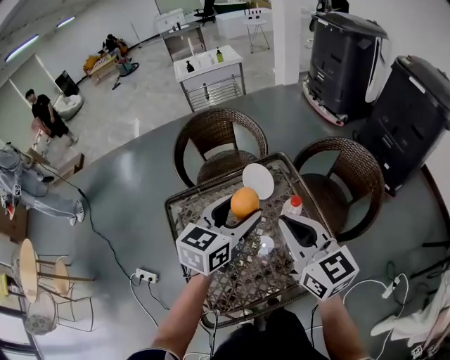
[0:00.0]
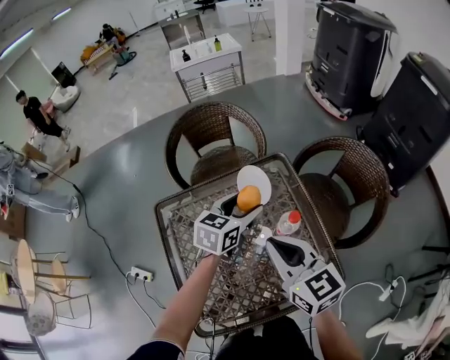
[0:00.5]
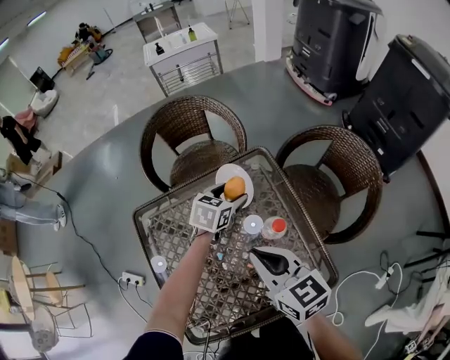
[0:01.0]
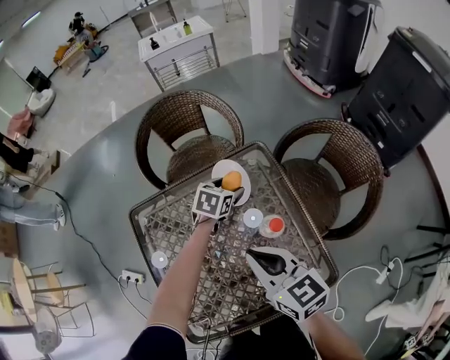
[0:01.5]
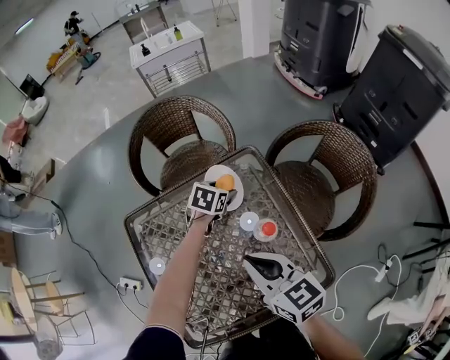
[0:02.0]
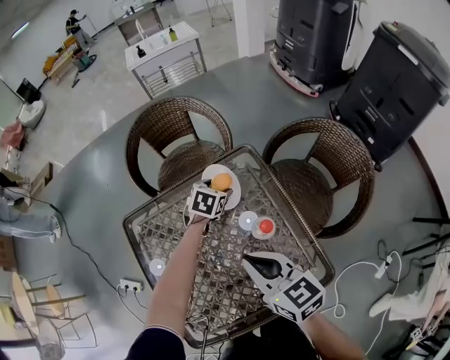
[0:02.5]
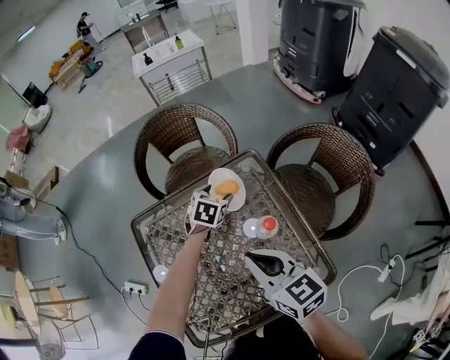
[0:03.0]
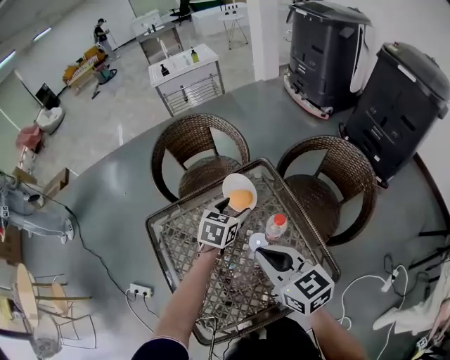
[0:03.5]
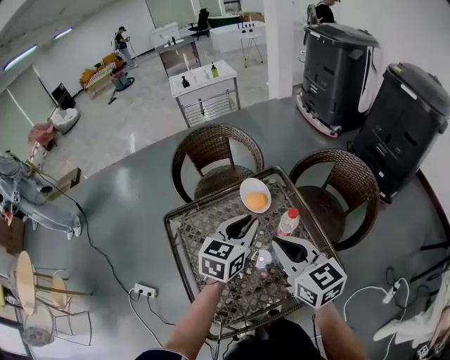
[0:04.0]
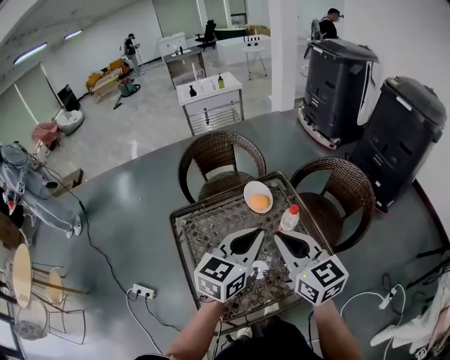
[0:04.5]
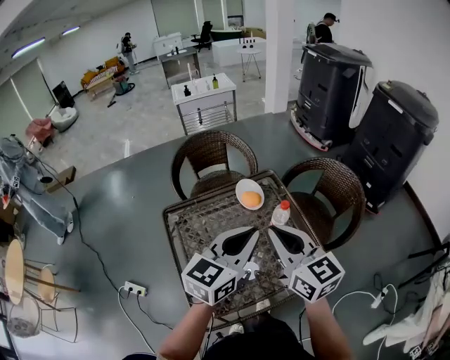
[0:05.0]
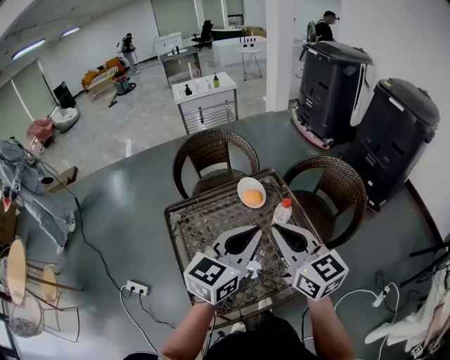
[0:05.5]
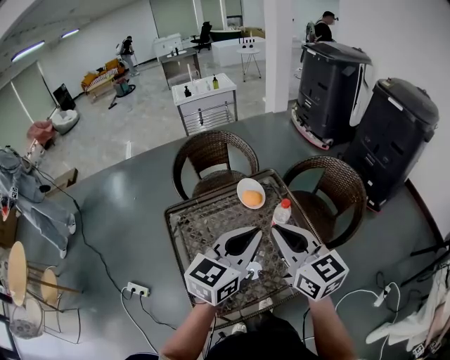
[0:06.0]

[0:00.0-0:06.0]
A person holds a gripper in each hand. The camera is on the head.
0:00.0 to 0:02.0: The left gripper heads downward and forward, covering about 35 cm, and tips its fingers downward by some 40 degrees; the right gripper goes about 15 cm downward, and turns by about 20 degrees.
0:02.0 to 0:04.0: The left gripper heads upward and backward, covering some 30 cm, points its fingers some 30 degrees further upward, and closes its fingers. The right gripper moves upward, about 10 cm.
0:04.0 to 0:06.0: The left gripper heads backward and upward, covering approximately 15 cm, while the right gripper travels upward by roughly 5 cm.

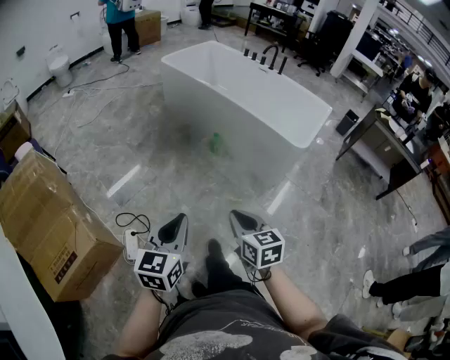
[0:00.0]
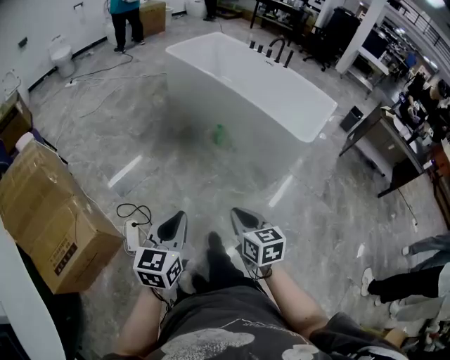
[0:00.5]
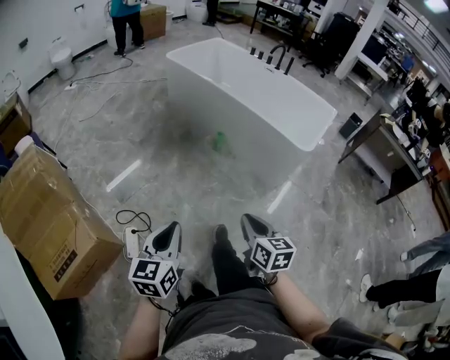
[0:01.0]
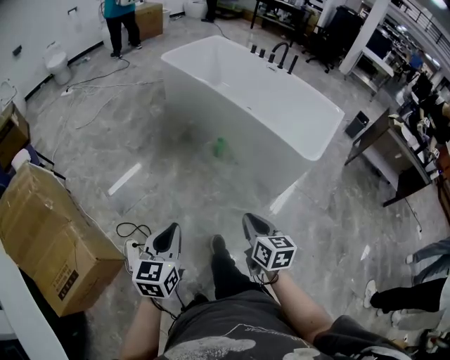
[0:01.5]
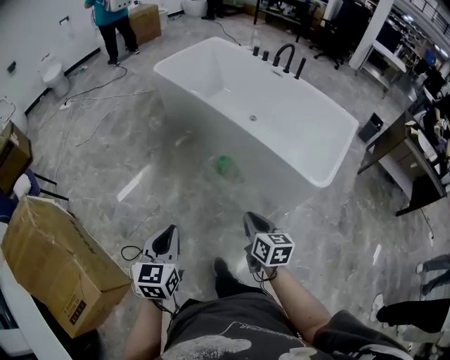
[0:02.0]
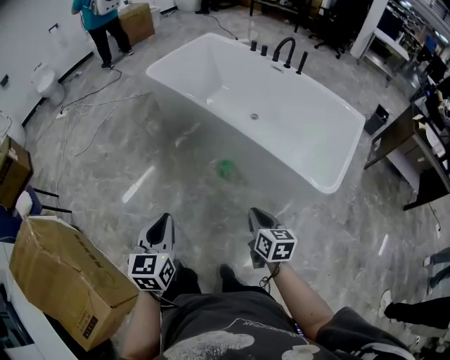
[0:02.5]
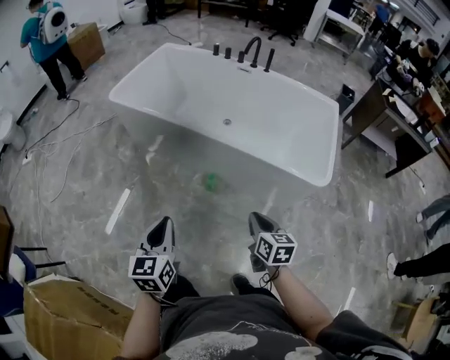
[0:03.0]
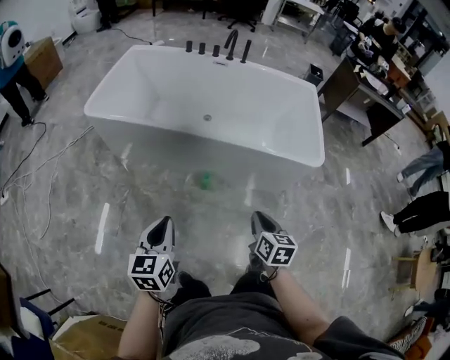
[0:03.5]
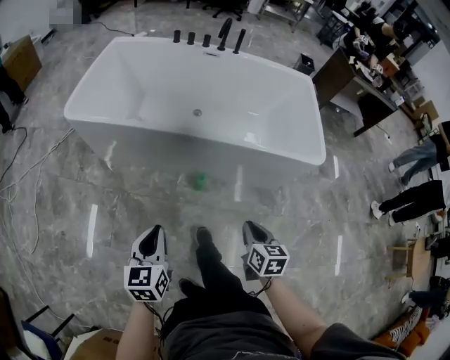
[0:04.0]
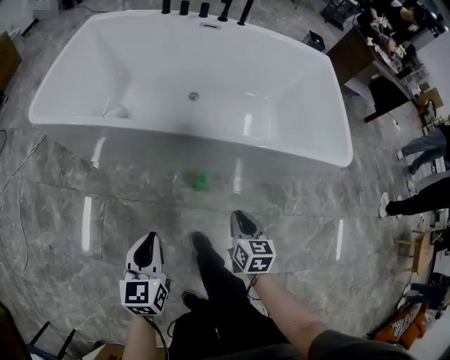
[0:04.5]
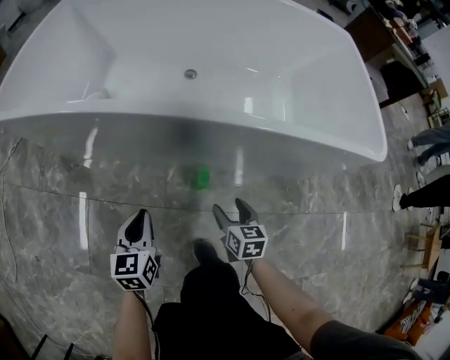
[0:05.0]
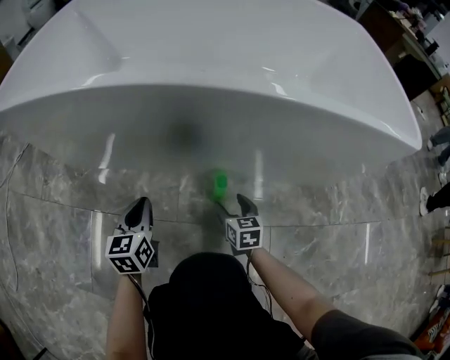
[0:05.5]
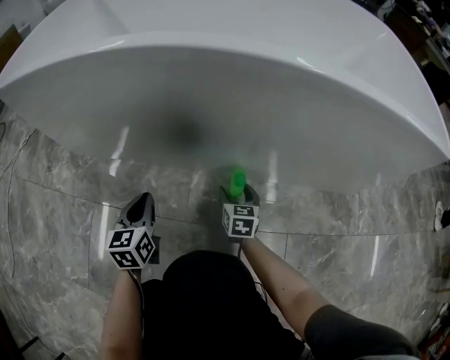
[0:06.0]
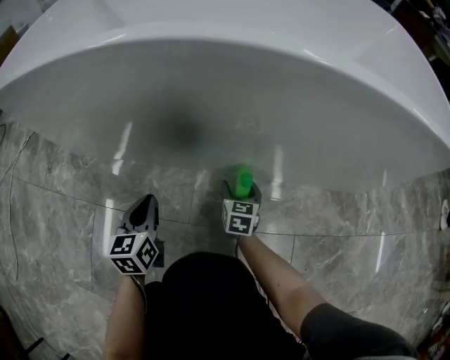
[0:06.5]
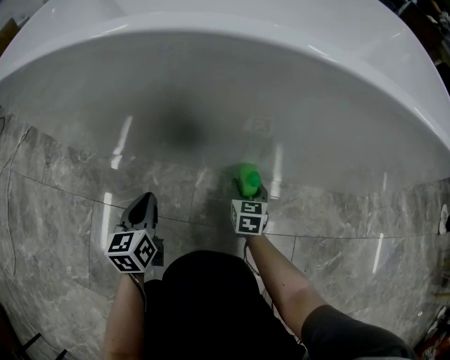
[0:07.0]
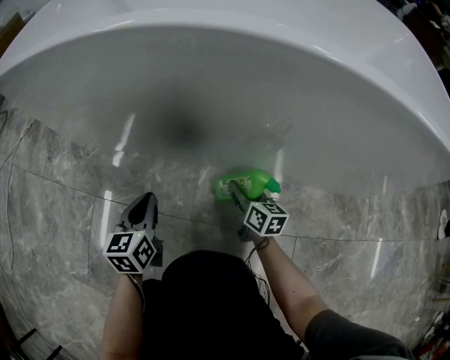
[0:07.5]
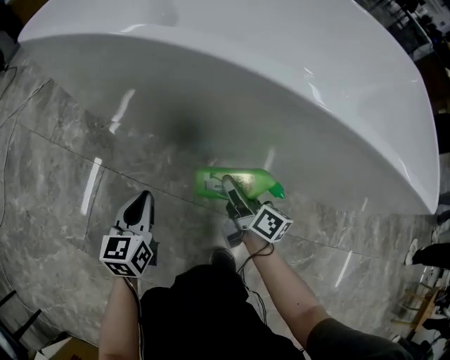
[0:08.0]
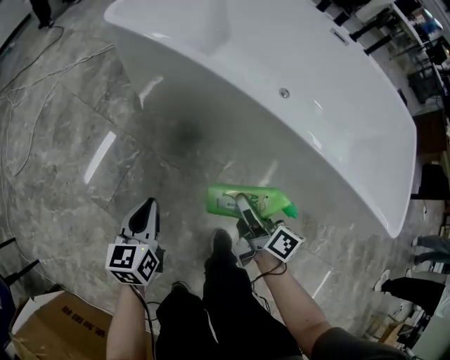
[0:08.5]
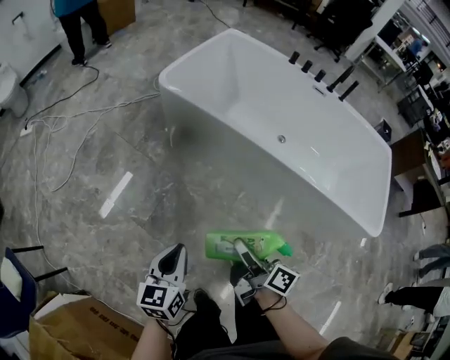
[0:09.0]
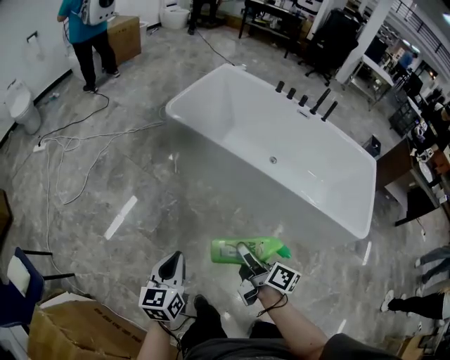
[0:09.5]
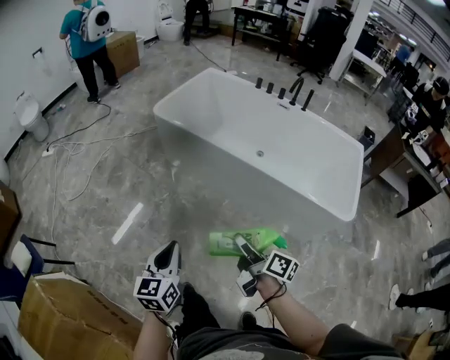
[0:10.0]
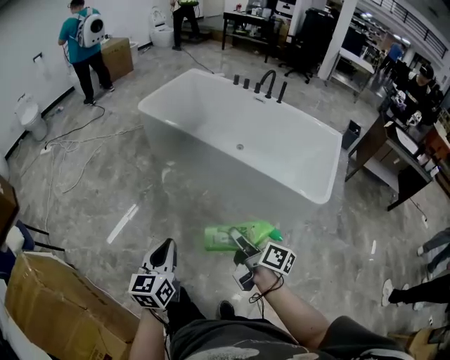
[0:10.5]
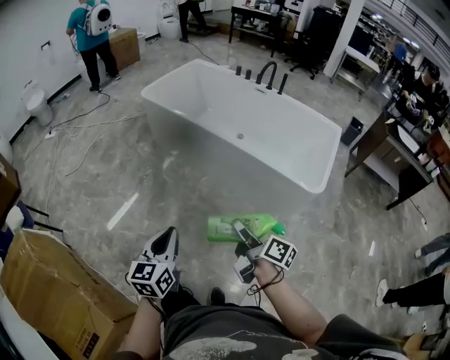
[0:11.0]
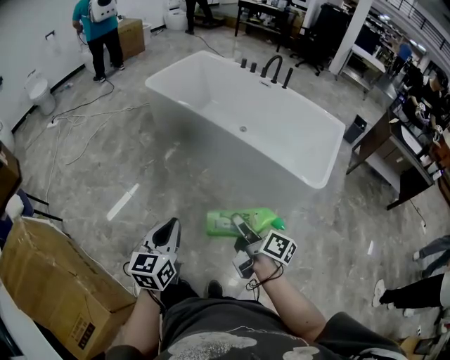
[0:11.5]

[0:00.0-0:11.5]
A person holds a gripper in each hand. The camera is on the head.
0:00.0 to 0:02.0: Both grippers travel together forward, some 30 cm.
0:02.0 to 0:04.0: The left gripper shifts by approximately 40 cm, and rotates roughly 30 degrees, while the right gripper ends up about 25 cm from where it was, and swivels about 40 degrees.
0:04.0 to 0:06.0: Both grippers travel together downward and forward, about 70 cm. The right gripper opens up.
0:06.0 to 0:07.5: The right gripper swivels about 30 degrees, and closes up.
0:07.5 to 0:09.5: The right gripper heads upward, covering roughly 70 cm, and turns by roughly 30 degrees, while the left gripper goes roughly 70 cm upward and backward, and turns by about 20 degrees.
0:09.5 to 0:11.5: Both grippers are carried backward and to the right, approximately 40 cm.

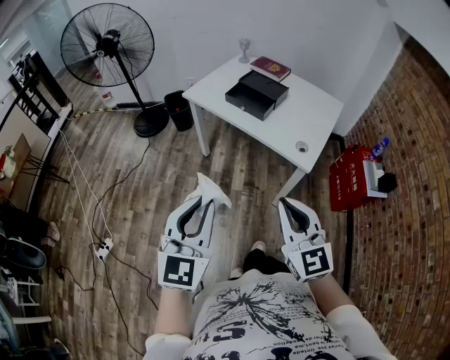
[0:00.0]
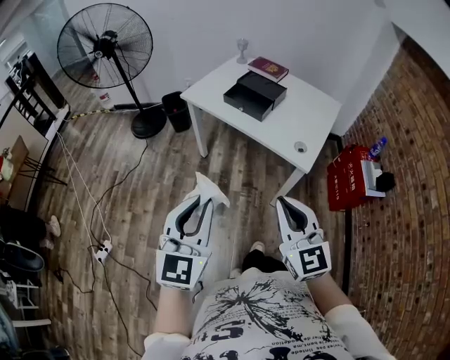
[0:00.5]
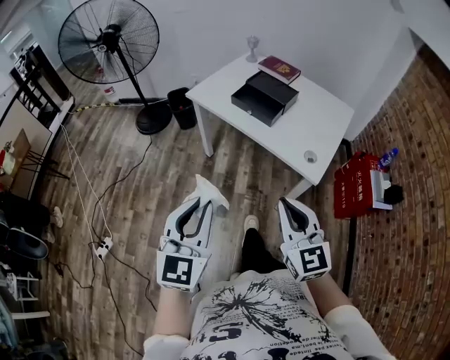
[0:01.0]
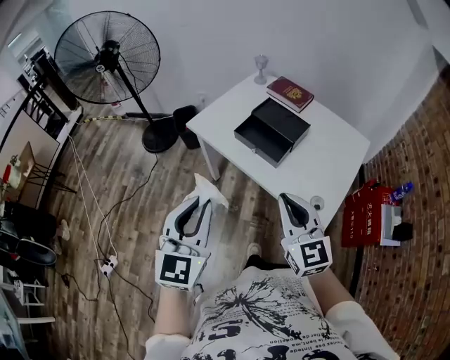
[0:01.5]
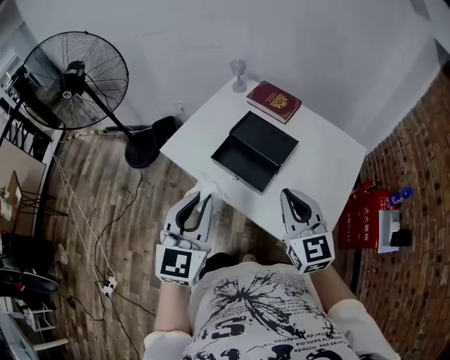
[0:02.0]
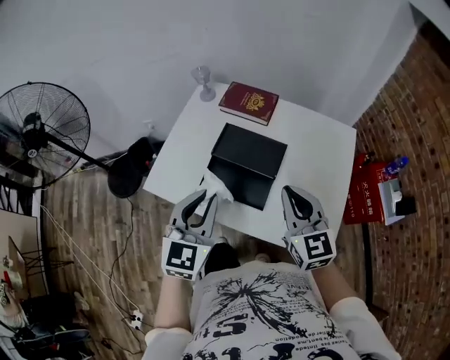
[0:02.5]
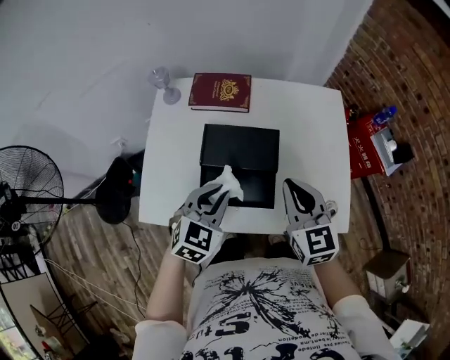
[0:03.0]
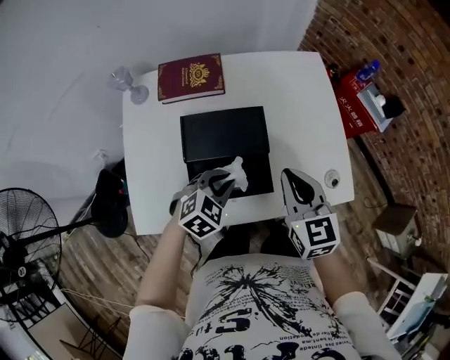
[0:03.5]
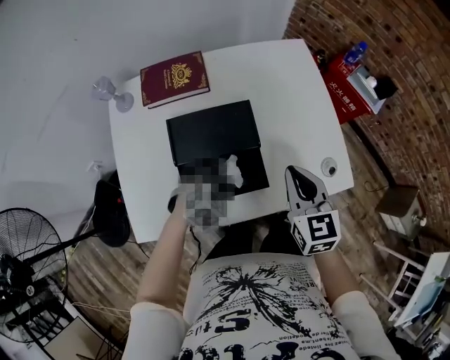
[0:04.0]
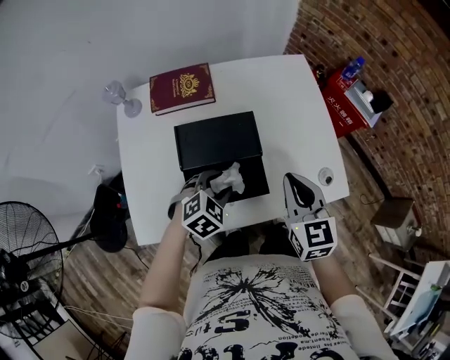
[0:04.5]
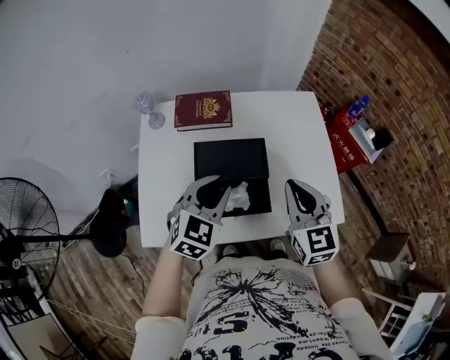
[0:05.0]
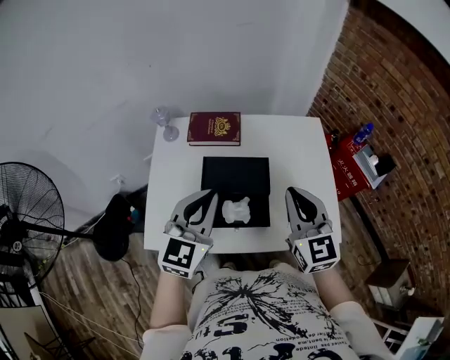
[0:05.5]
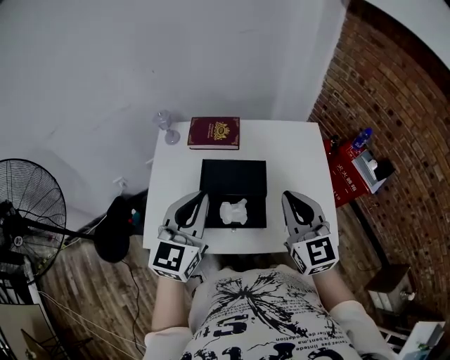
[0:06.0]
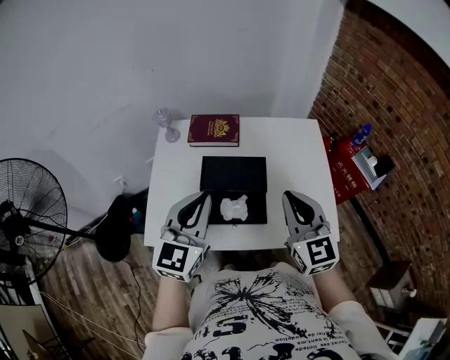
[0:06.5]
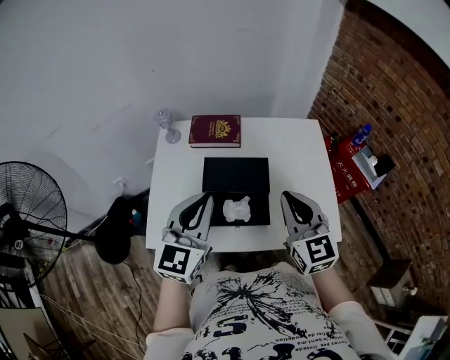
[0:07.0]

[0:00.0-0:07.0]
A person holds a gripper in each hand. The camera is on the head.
0:00.0 to 0:02.0: Both grippers are carried forward, roughly 50 cm.
0:02.0 to 0:03.5: The right gripper shifts by about 20 cm, and swivels about 50 degrees, while the left gripper moves downward, roughly 25 cm, and tilts its fingers some 40 degrees downward.
0:03.5 to 0:05.0: The left gripper moves upward, approximately 15 cm, changes its angle by some 30 degrees, and opens and closes again; the right gripper travels upward by approximately 10 cm.
0:05.0 to 0:07.0: The right gripper travels upward by roughly 5 cm, while the left gripper shifts roughly 15 cm upward and backward, turns by some 30 degrees, and closes.

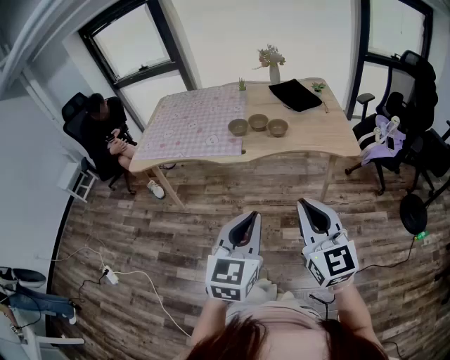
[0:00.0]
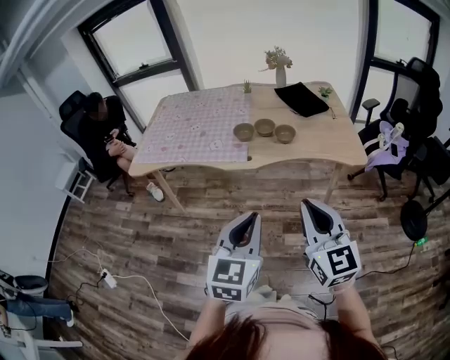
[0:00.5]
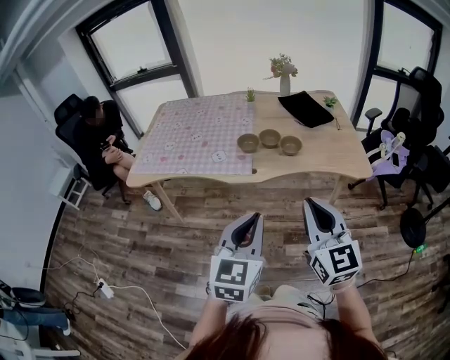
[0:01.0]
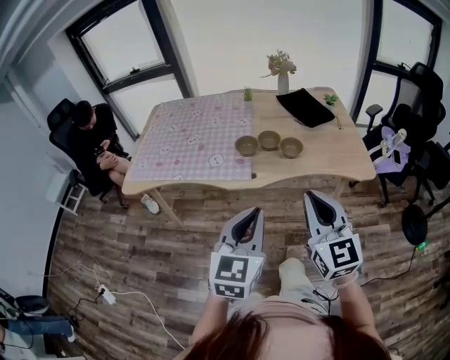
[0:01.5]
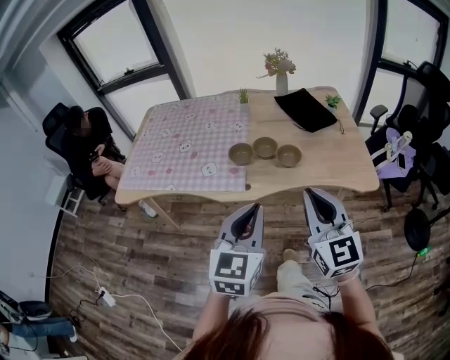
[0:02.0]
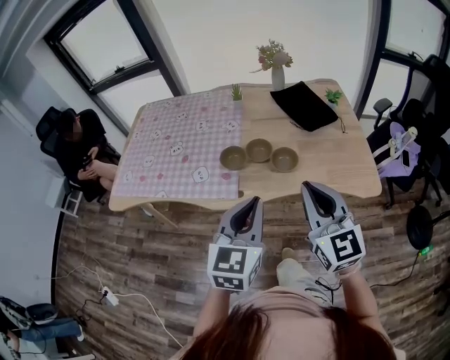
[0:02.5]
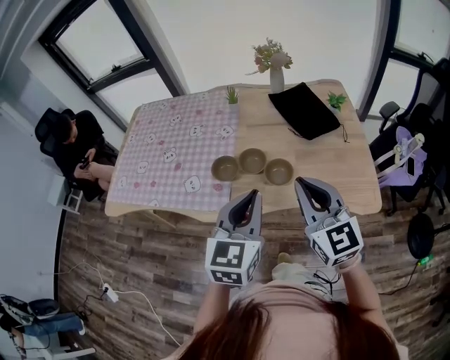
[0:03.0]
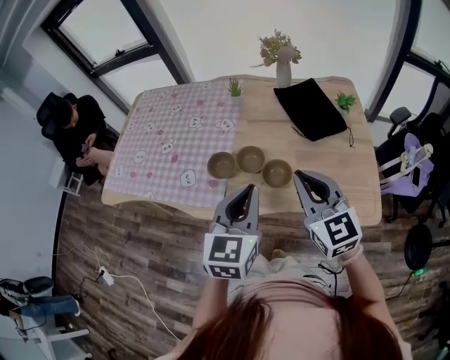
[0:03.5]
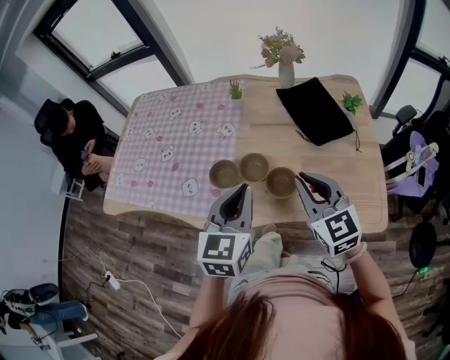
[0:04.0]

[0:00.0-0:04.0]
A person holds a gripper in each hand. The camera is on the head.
0:00.0 to 0:02.0: Both grippers travel together forward, about 25 cm.
0:02.0 to 0:04.0: Both grippers move forward, about 25 cm.
